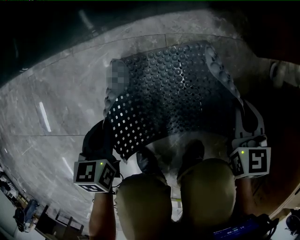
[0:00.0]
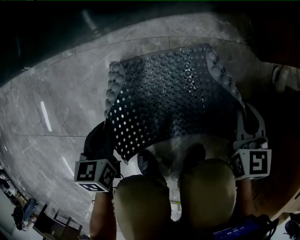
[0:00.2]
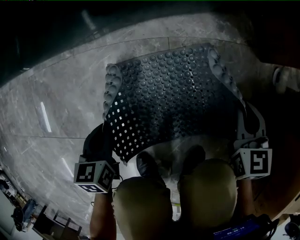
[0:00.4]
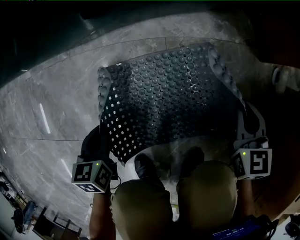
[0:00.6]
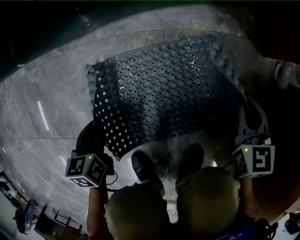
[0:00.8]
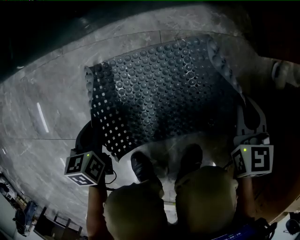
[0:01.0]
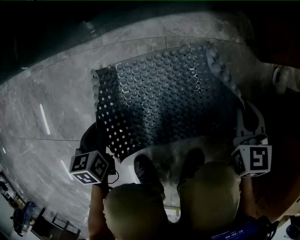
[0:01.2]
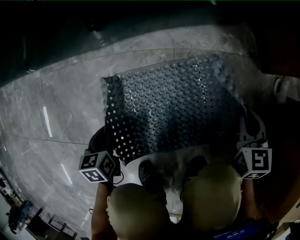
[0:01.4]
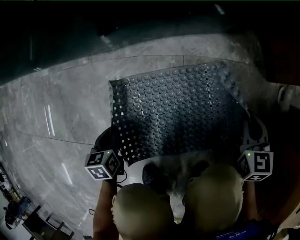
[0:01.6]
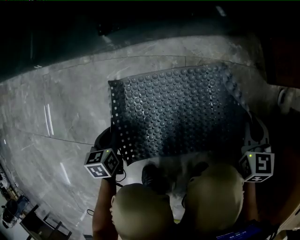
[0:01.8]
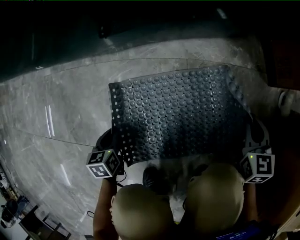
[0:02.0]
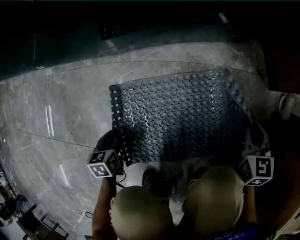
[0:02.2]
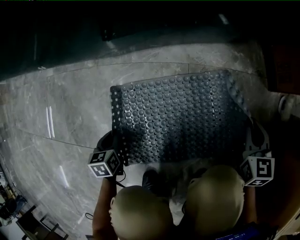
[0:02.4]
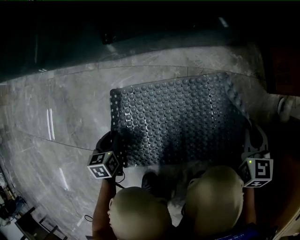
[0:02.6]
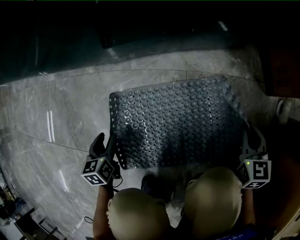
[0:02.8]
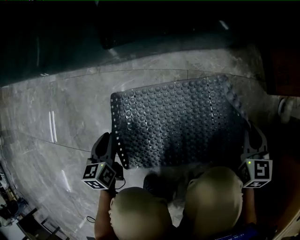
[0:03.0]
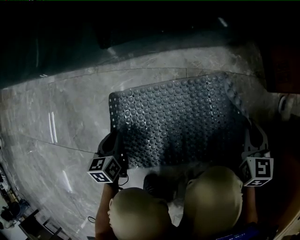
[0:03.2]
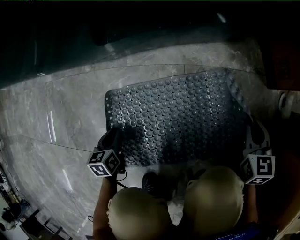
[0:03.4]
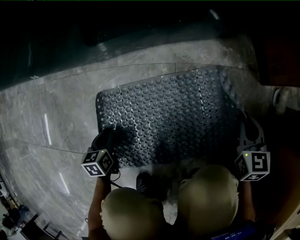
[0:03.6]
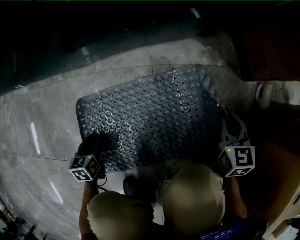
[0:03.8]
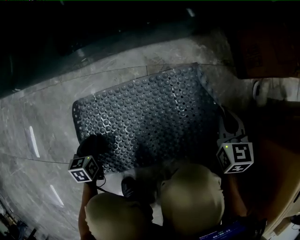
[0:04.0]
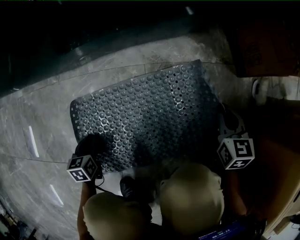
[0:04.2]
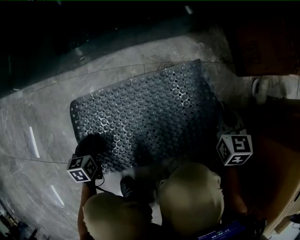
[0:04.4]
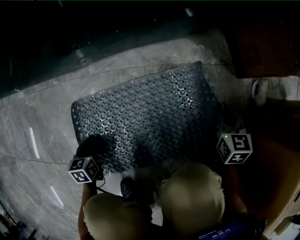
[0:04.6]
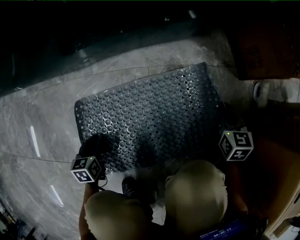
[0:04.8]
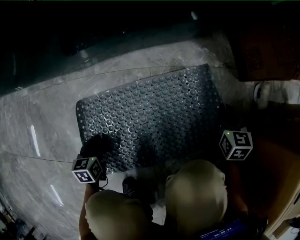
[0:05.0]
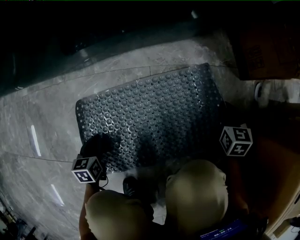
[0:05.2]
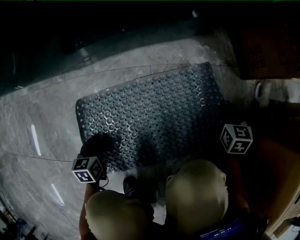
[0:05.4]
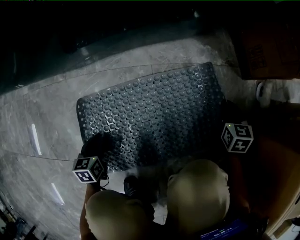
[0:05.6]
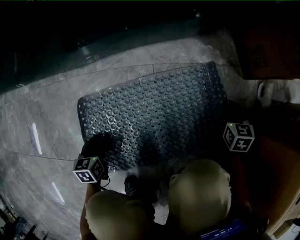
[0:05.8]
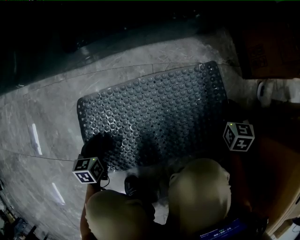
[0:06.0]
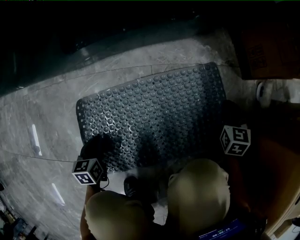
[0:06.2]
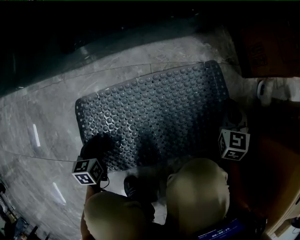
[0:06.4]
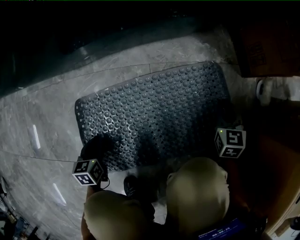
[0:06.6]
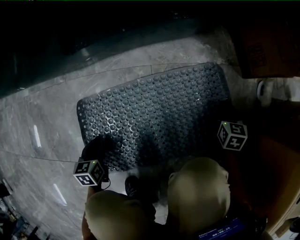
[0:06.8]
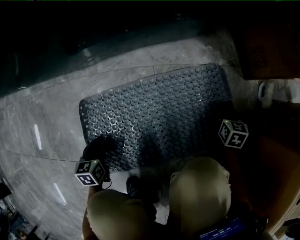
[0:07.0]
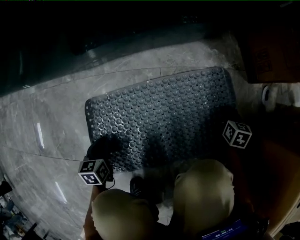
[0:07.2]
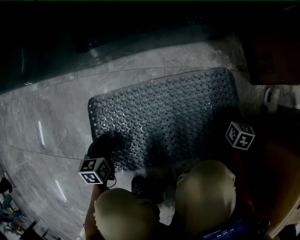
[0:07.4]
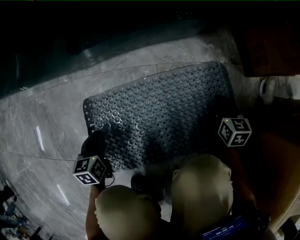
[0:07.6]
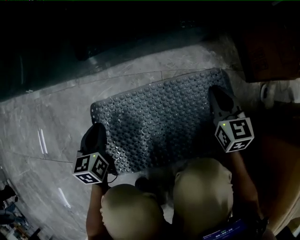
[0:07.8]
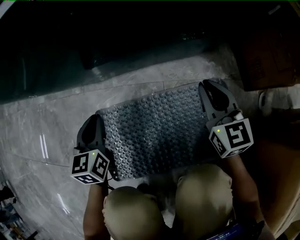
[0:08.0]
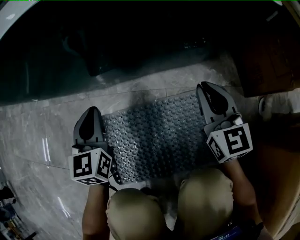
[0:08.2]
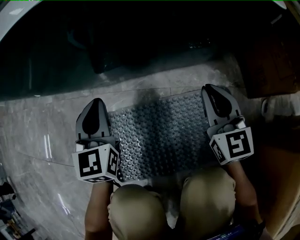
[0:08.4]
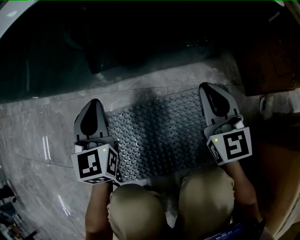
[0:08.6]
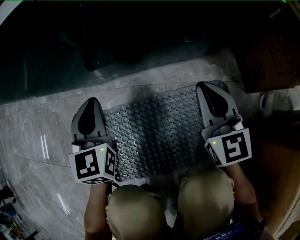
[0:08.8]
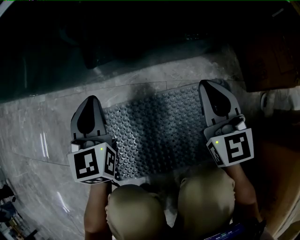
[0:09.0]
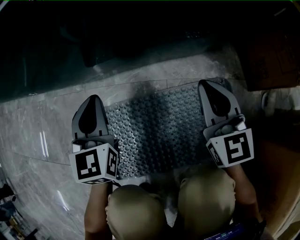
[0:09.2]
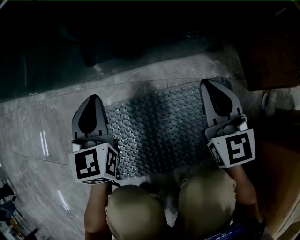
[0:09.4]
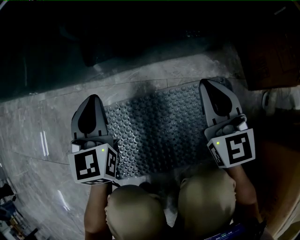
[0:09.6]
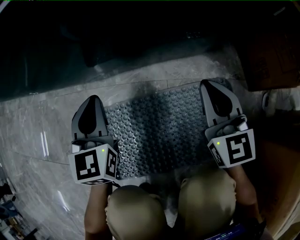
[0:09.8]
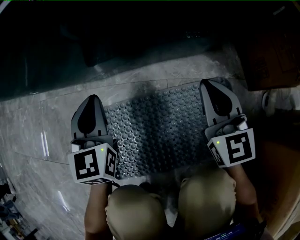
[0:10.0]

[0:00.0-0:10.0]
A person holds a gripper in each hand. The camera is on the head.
0:00.0 to 0:01.4: The left gripper heads downward and to the left, covering some 10 cm. The right gripper heads downward, covering about 5 cm.
0:01.4 to 0:02.8: The left gripper opens up.
0:02.8 to 0:04.2: The left gripper shifts about 10 cm downward, and closes up. The right gripper ends up roughly 5 cm from where it was.
0:04.2 to 0:05.8: The right gripper heads downward, covering some 5 cm.
0:05.8 to 0:07.2: The right gripper travels downward by approximately 5 cm.
0:07.2 to 0:08.6: The right gripper goes roughly 35 cm upward and to the left, and tips its fingers upward by about 40 degrees. Meanwhile the left gripper heads upward and forward, covering roughly 30 cm, and angles its fingers upward, by roughly 30 degrees.
0:08.6 to 0:10.0: The grippers make only small movements.

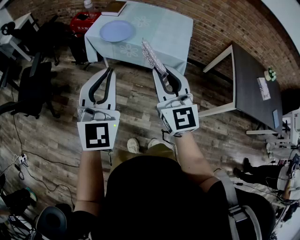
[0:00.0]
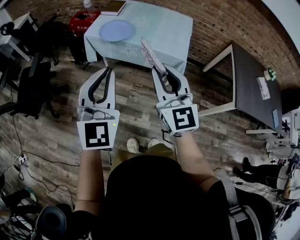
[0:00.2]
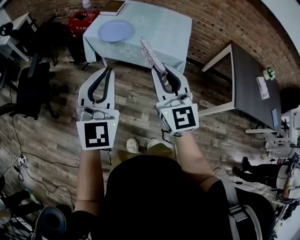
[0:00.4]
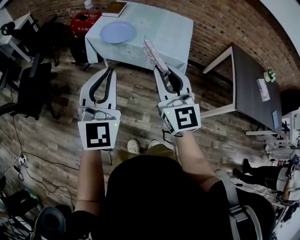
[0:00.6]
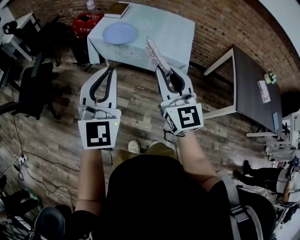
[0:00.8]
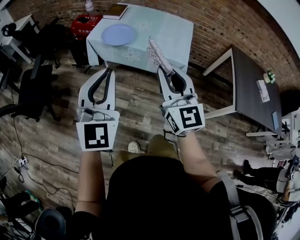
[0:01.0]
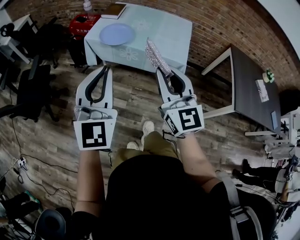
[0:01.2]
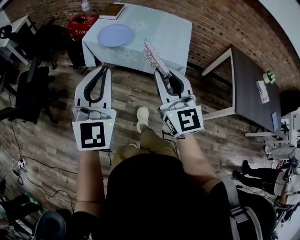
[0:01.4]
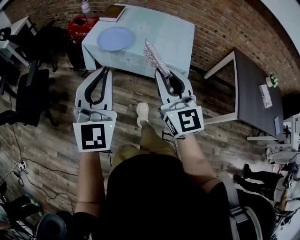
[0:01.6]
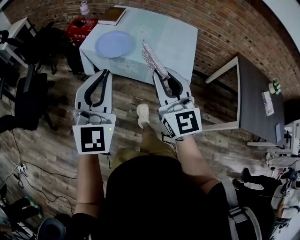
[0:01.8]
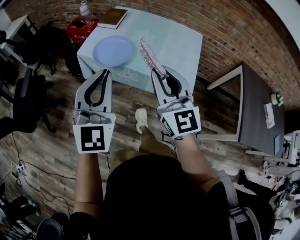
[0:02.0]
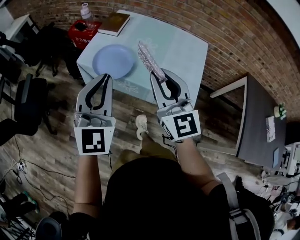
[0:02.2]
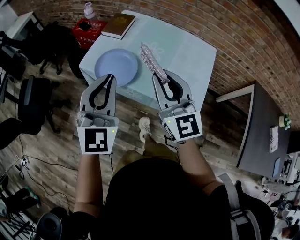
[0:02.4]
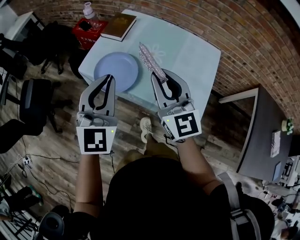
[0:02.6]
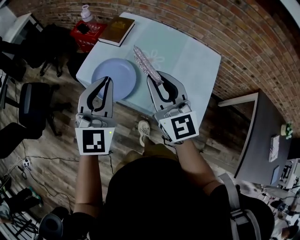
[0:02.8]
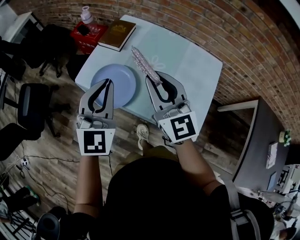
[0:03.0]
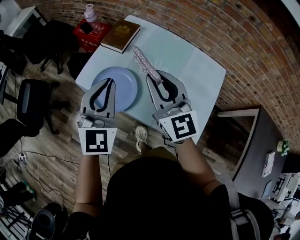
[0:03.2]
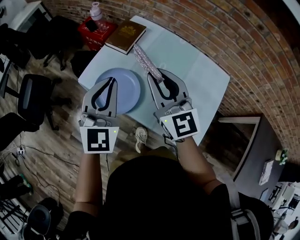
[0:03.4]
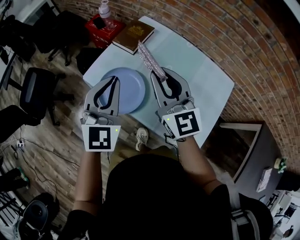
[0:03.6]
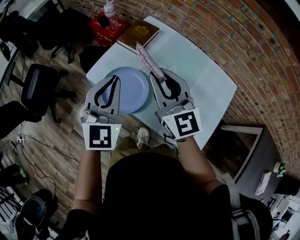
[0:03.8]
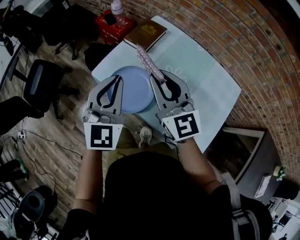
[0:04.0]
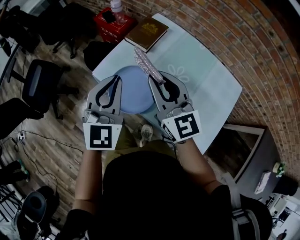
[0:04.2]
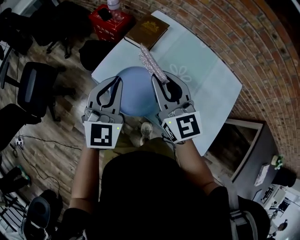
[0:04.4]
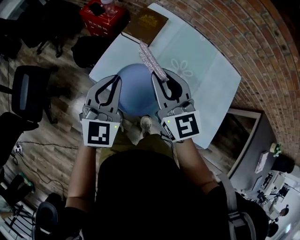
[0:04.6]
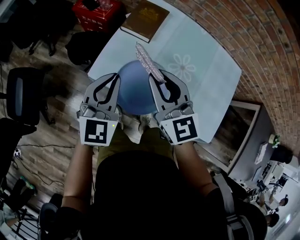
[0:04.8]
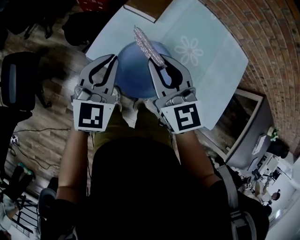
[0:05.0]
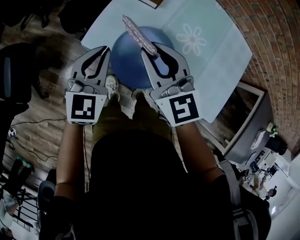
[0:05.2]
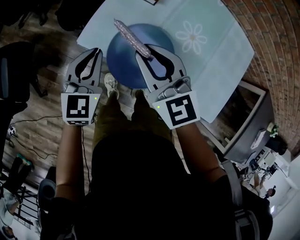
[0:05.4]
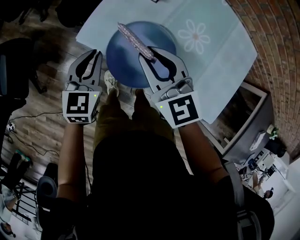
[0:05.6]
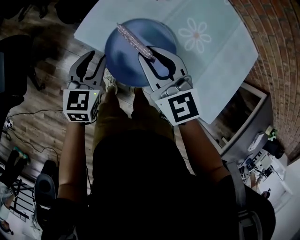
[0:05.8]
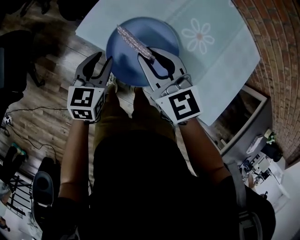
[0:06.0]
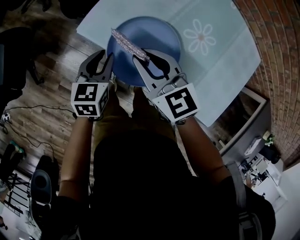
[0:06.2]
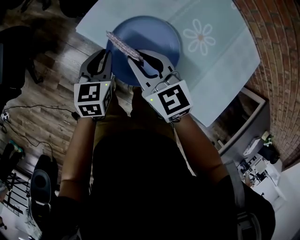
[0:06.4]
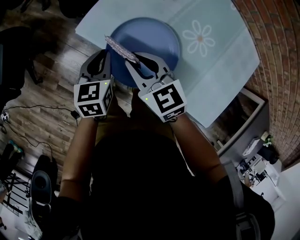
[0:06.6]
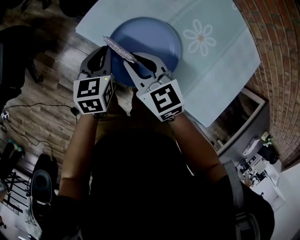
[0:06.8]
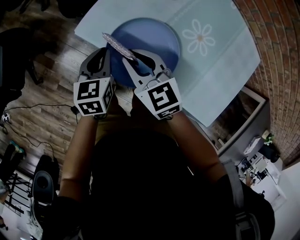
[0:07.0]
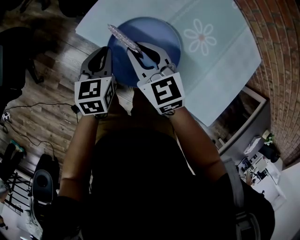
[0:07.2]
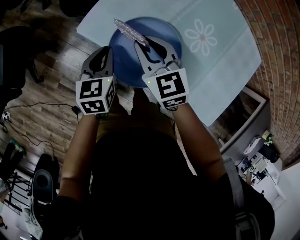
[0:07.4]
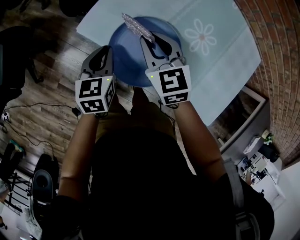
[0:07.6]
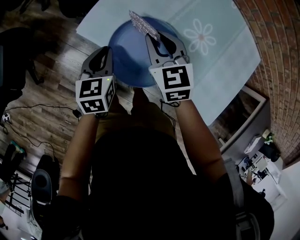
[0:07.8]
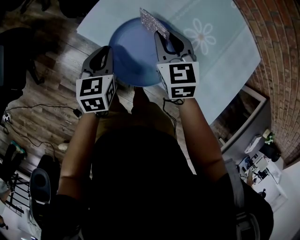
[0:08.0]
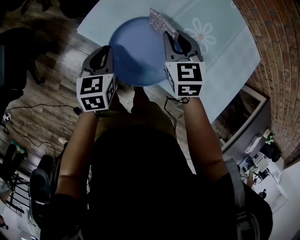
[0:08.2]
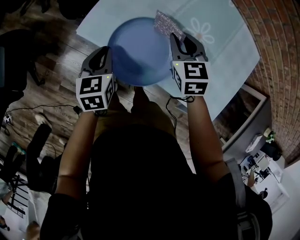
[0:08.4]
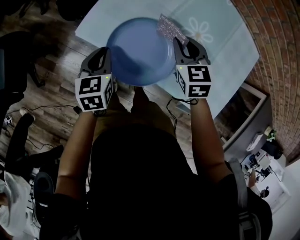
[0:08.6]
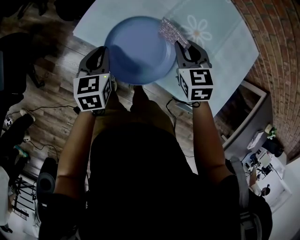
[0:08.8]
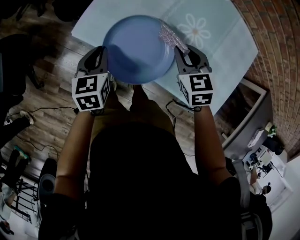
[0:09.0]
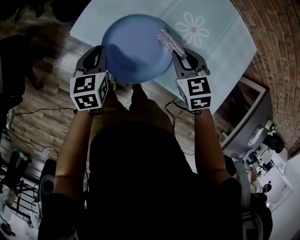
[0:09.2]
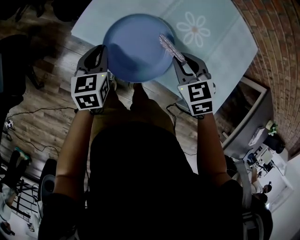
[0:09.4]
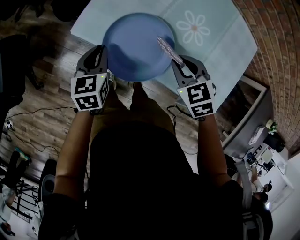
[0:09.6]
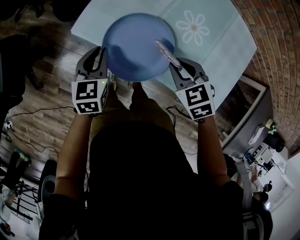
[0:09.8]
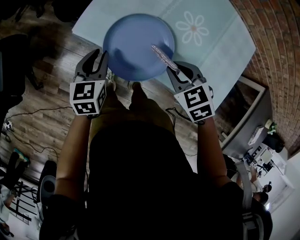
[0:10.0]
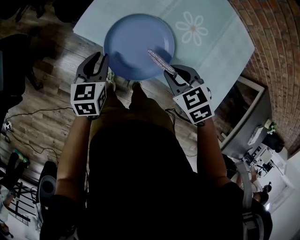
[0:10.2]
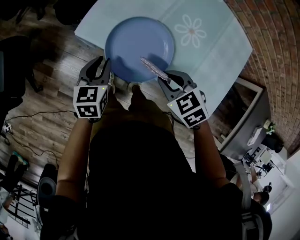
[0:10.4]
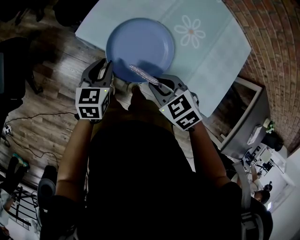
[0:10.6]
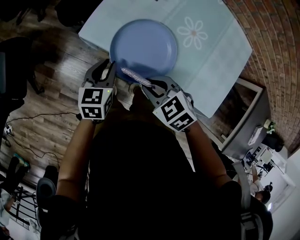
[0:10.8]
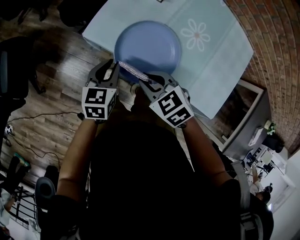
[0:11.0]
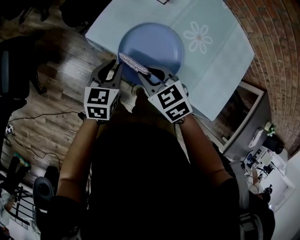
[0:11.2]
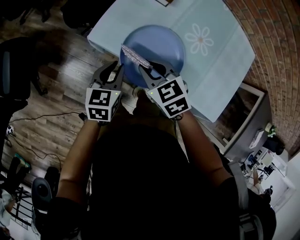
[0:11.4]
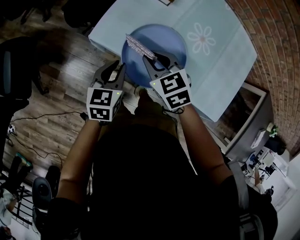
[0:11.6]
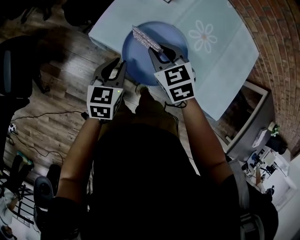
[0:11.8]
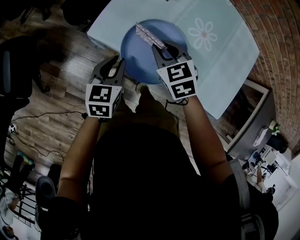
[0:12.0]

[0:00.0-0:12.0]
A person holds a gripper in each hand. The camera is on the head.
0:00.0 to 0:01.6: The two grippers go roughly 10 cm forward.
0:01.6 to 0:03.0: The pair of grippers is taken forward, some 50 cm.
0:03.0 to 0:04.4: The left gripper moves forward, to the left and downward, roughly 15 cm. Meanwhile the right gripper goes approximately 15 cm forward and to the left.
0:04.4 to 0:06.0: The left gripper moves downward, roughly 30 cm, turns by about 40 degrees, and opens. Meanwhile the right gripper moves downward and to the left, about 20 cm, and rotates about 20 degrees.
0:06.0 to 0:07.6: The right gripper moves downward, approximately 5 cm. Meanwhile the left gripper closes.
0:07.6 to 0:09.0: The right gripper moves to the right, about 15 cm.
0:09.0 to 0:10.4: The left gripper heads backward, covering roughly 5 cm. Meanwhile the right gripper is displaced backward and to the left by approximately 15 cm, and turns by some 20 degrees.
0:10.4 to 0:12.0: The right gripper is displaced forward and to the left by roughly 15 cm.

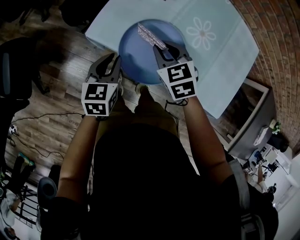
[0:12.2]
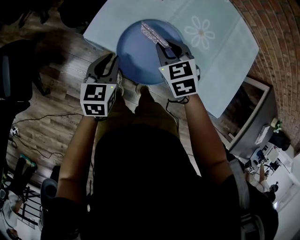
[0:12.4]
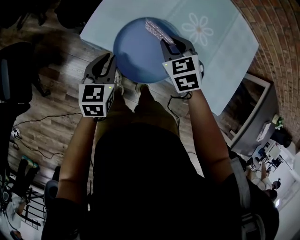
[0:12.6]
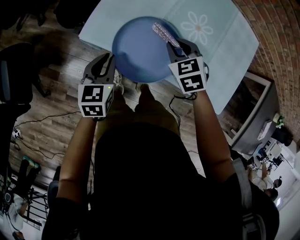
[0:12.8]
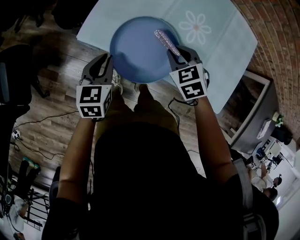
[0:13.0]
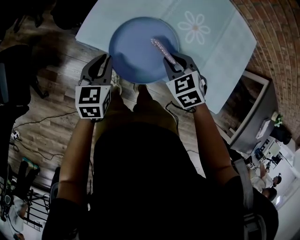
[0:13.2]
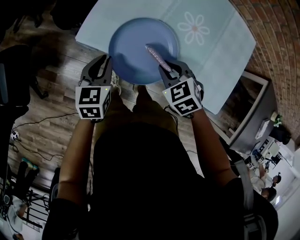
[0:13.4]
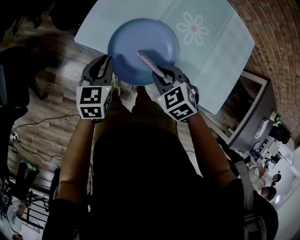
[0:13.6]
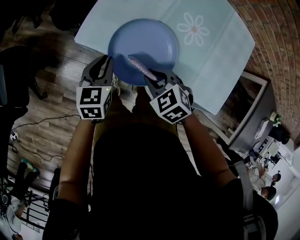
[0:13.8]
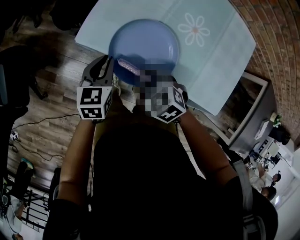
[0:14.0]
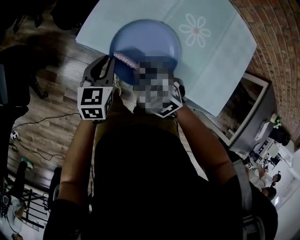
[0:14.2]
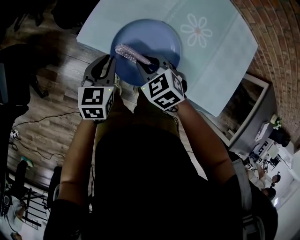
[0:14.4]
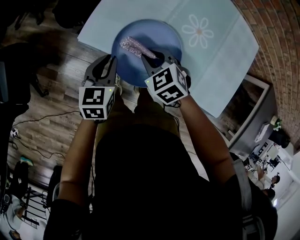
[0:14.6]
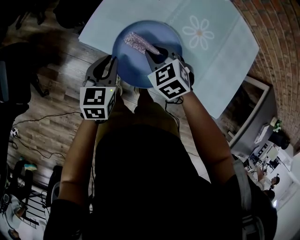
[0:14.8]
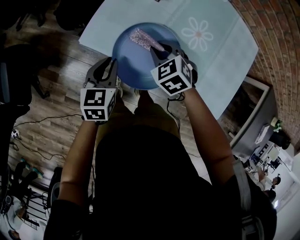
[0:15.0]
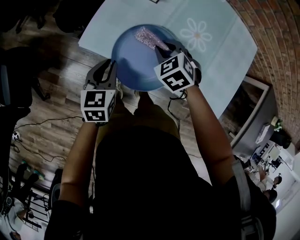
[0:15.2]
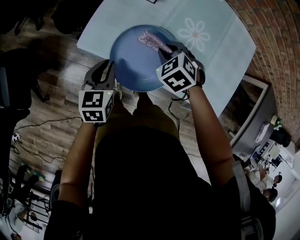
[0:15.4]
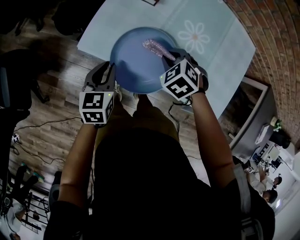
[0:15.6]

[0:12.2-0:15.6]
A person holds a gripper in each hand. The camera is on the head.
0:12.2 to 0:13.8: The right gripper shifts roughly 10 cm backward.
0:13.8 to 0:15.6: The right gripper travels forward and to the right by approximately 10 cm.
